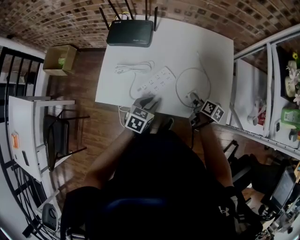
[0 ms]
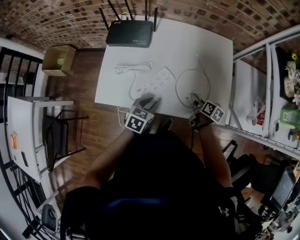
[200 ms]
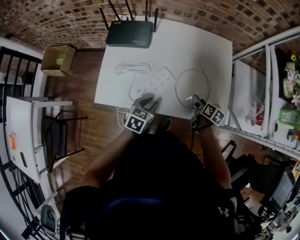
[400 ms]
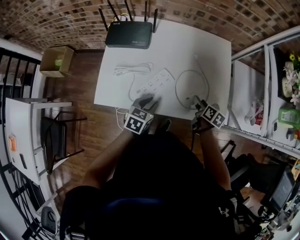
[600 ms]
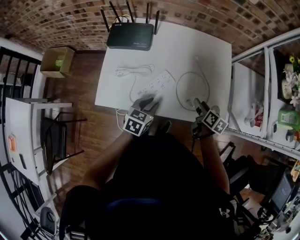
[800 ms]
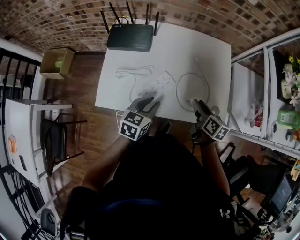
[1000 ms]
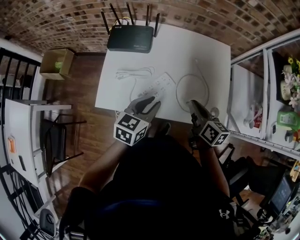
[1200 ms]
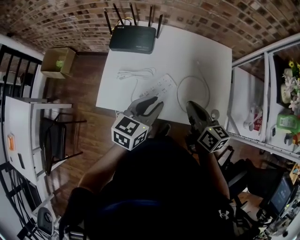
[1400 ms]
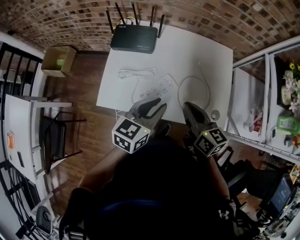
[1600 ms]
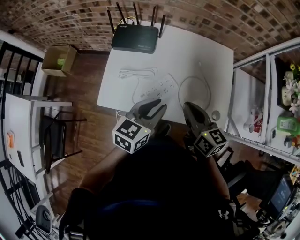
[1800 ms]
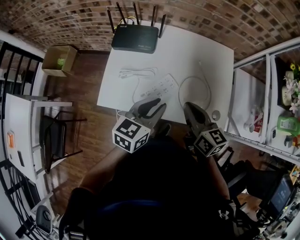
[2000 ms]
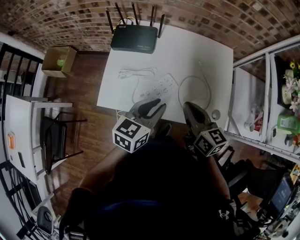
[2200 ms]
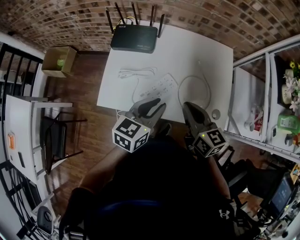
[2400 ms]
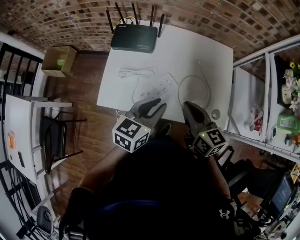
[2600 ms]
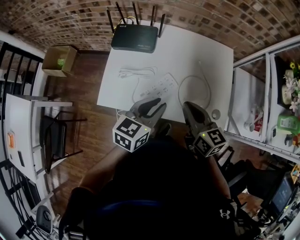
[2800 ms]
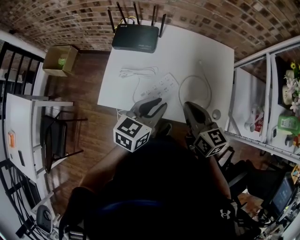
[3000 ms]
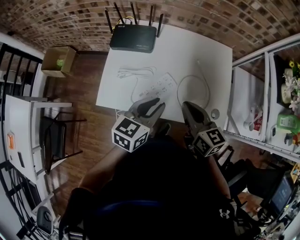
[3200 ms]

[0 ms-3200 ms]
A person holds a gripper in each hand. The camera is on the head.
0 ms to 1600 ms: The right gripper moves upward and to the left, about 25 cm, rotates roughly 40 degrees, and closes; the left gripper shifts approximately 20 cm upward, and rotates roughly 30 degrees.
1600 ms to 3200 ms: The grippers move only a little.

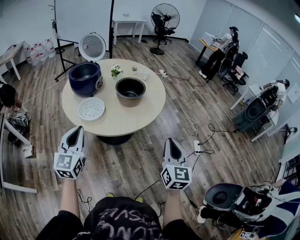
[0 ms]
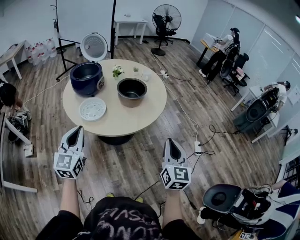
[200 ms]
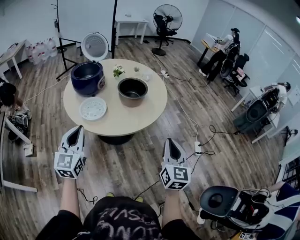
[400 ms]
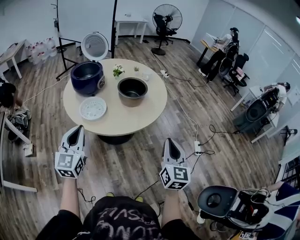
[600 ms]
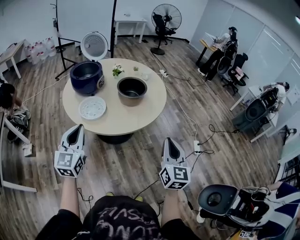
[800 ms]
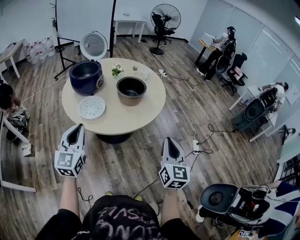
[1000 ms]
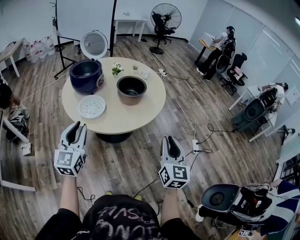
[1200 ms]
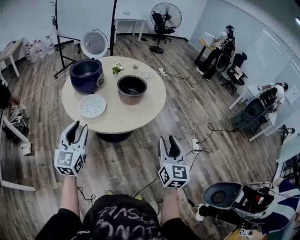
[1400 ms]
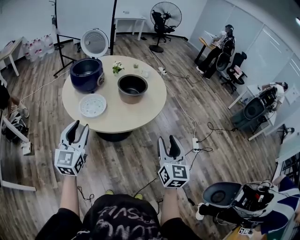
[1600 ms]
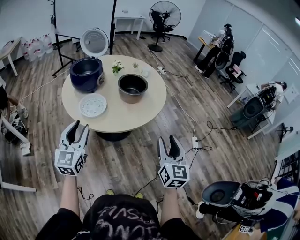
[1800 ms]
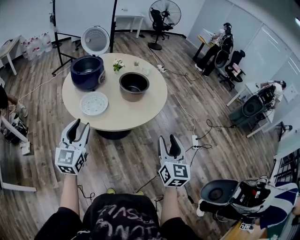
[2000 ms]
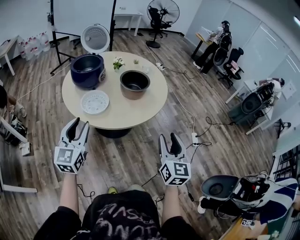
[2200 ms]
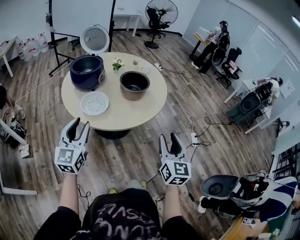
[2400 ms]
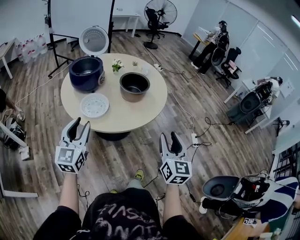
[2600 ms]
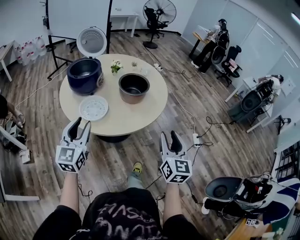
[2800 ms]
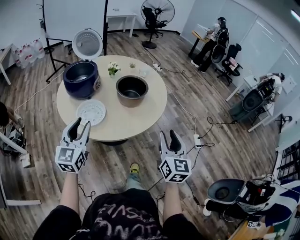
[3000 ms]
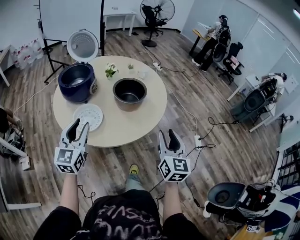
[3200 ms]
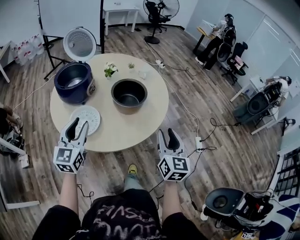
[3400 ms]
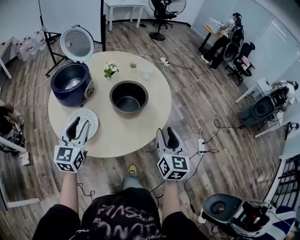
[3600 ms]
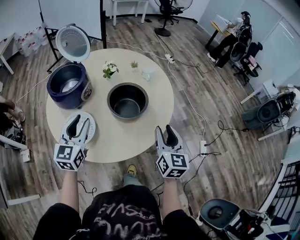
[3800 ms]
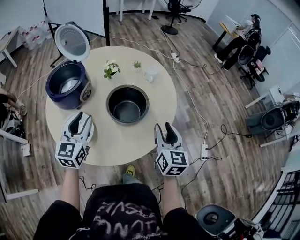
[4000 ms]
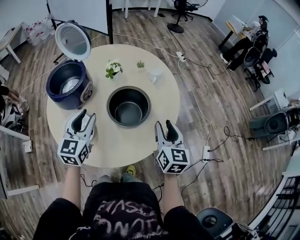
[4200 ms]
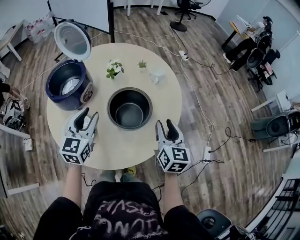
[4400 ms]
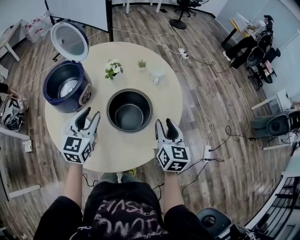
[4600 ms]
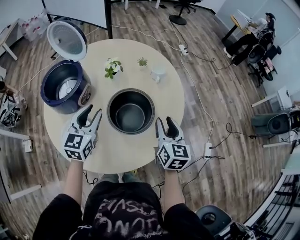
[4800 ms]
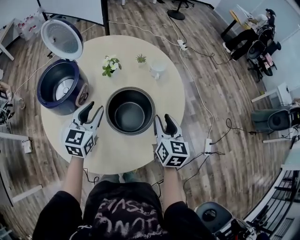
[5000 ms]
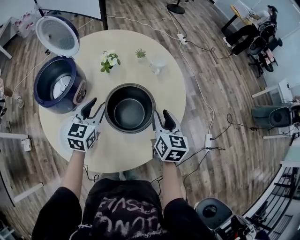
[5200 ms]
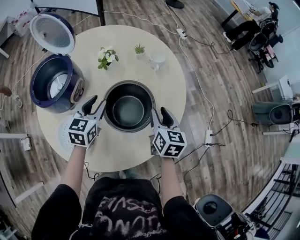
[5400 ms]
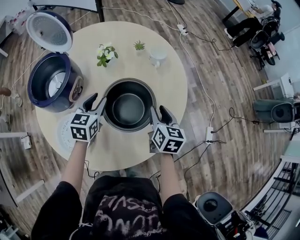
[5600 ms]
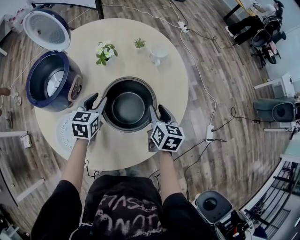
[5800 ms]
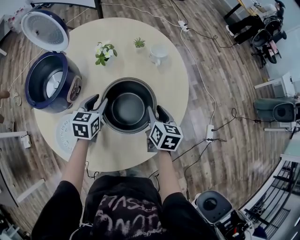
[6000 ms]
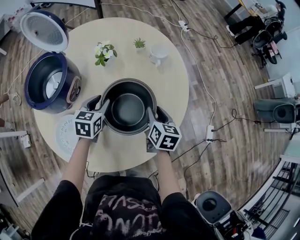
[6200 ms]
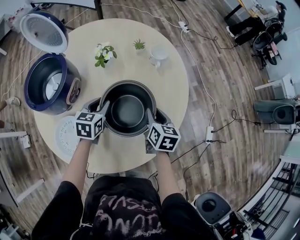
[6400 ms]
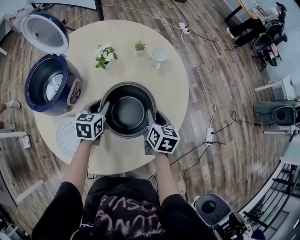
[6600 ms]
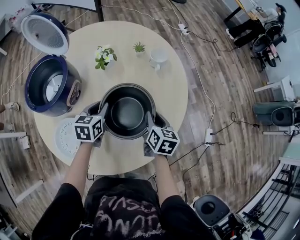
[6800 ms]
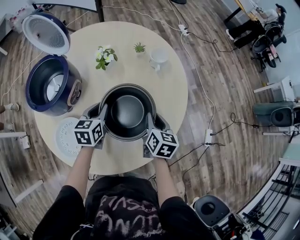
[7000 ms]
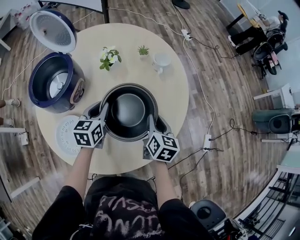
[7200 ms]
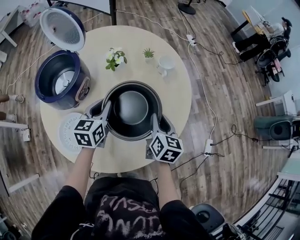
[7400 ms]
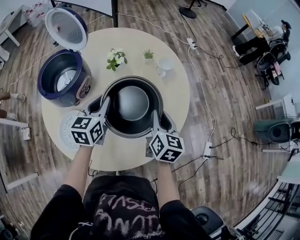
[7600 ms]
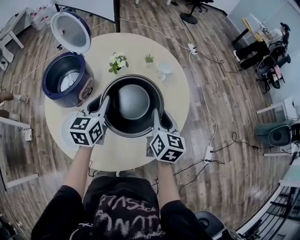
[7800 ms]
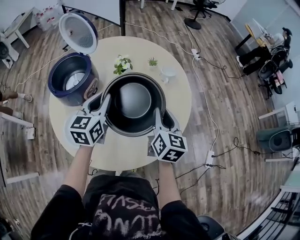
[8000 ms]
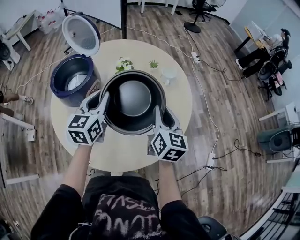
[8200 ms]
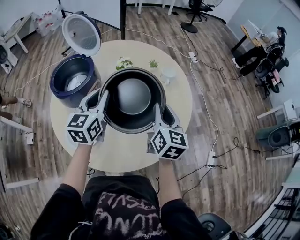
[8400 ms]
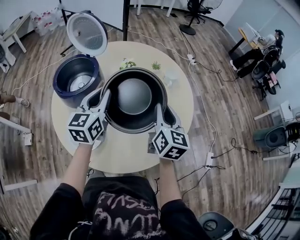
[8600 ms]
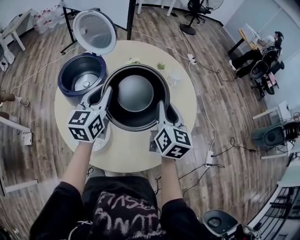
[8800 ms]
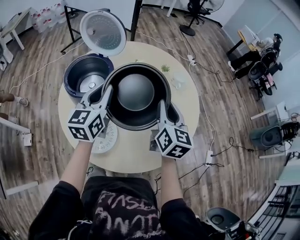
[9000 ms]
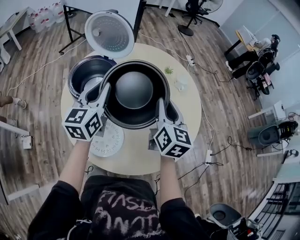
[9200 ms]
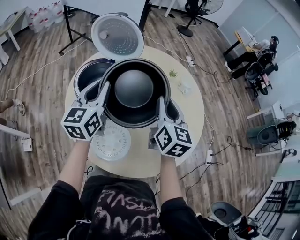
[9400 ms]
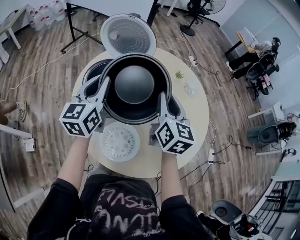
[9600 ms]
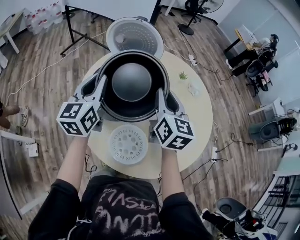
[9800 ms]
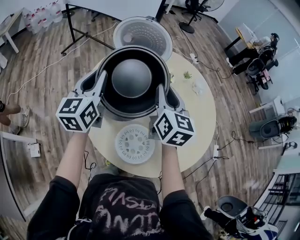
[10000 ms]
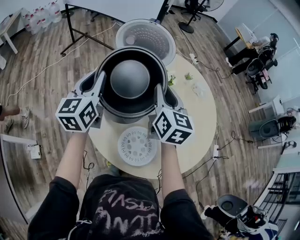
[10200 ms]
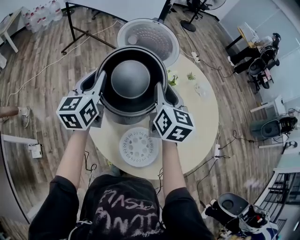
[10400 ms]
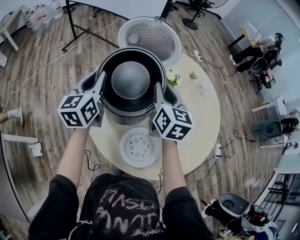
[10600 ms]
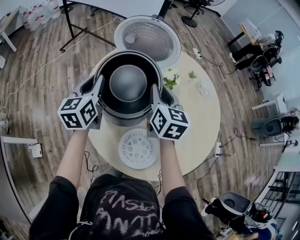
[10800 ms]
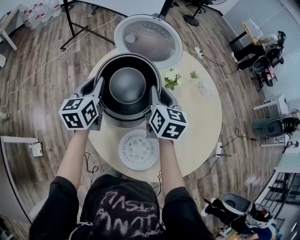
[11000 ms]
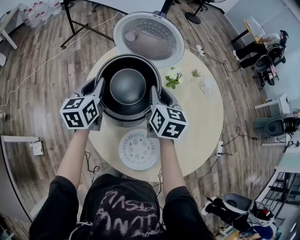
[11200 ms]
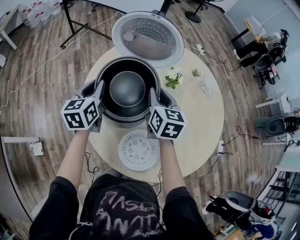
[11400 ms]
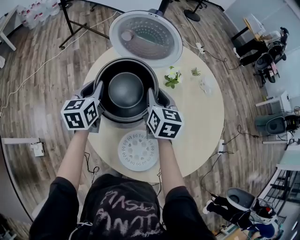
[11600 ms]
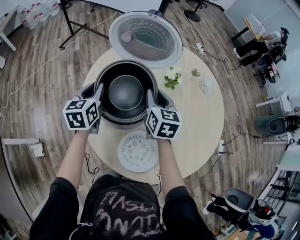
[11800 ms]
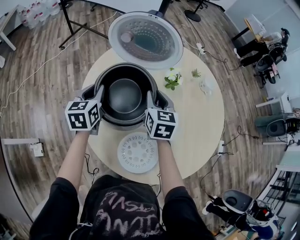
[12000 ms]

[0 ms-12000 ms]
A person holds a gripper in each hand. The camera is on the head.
0 ms to 1600 ms: The left gripper opens. The right gripper opens its fingers.
1600 ms to 3000 ms: Both grippers move forward, roughly 5 cm.
3000 ms to 4400 ms: The grippers both shift forward by roughly 30 cm.
4400 ms to 6000 ms: Both grippers travel together downward and forward, some 20 cm. The right gripper turns by roughly 20 degrees. The left gripper turns by about 30 degrees.
6000 ms to 7600 ms: The grippers both shift upward by approximately 10 cm. The left gripper closes its fingers.
7600 ms to 9000 ms: The grippers both shift to the left and upward by approximately 15 cm.
9000 ms to 10400 ms: The grippers both shift to the left by some 25 cm.
10400 ms to 12000 ms: Both grippers move downward, some 15 cm. The left gripper turns by about 20 degrees.

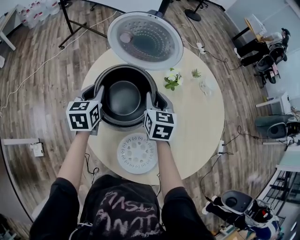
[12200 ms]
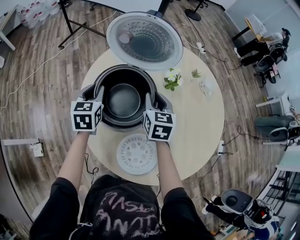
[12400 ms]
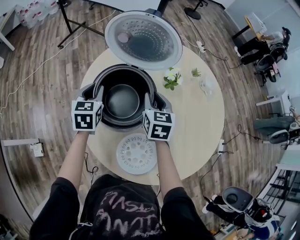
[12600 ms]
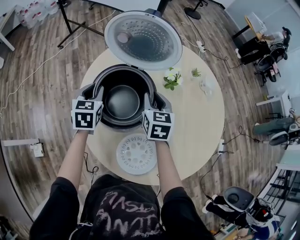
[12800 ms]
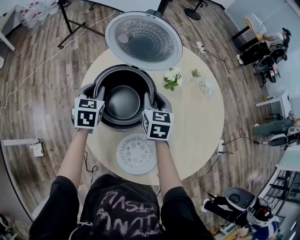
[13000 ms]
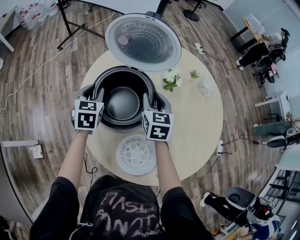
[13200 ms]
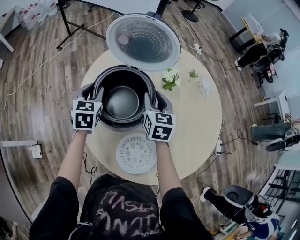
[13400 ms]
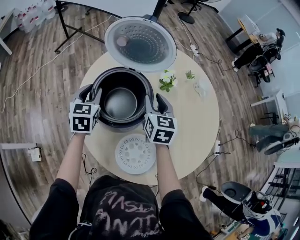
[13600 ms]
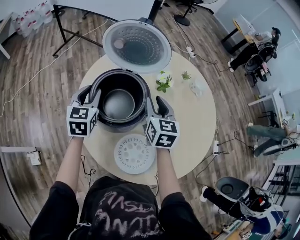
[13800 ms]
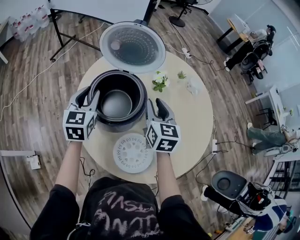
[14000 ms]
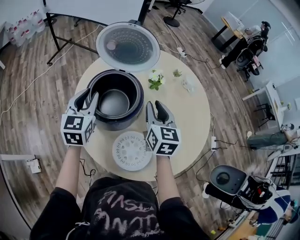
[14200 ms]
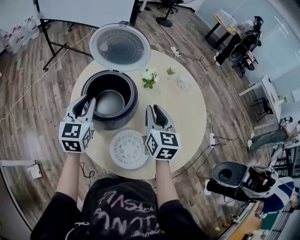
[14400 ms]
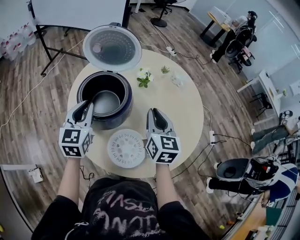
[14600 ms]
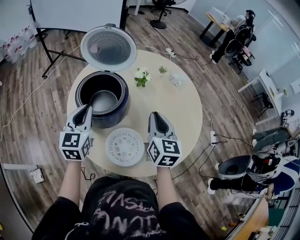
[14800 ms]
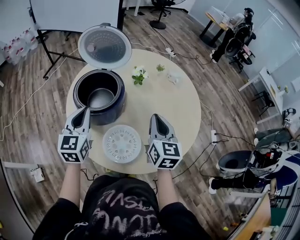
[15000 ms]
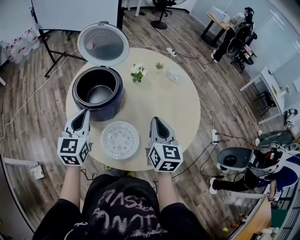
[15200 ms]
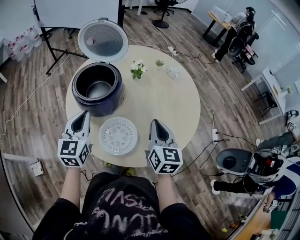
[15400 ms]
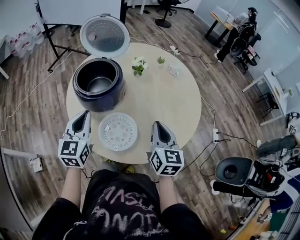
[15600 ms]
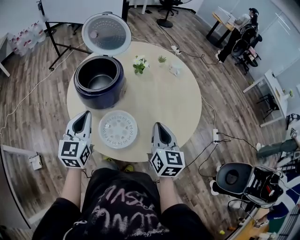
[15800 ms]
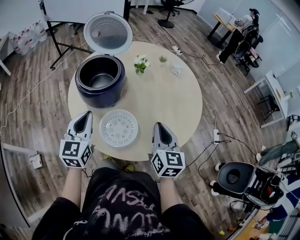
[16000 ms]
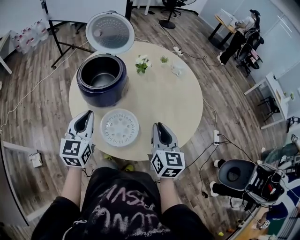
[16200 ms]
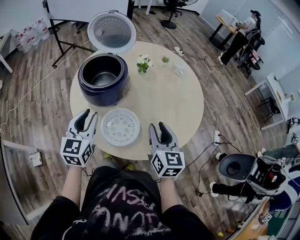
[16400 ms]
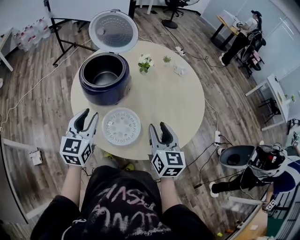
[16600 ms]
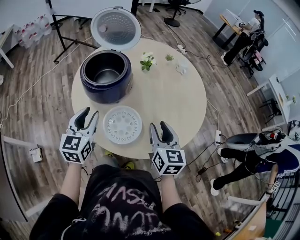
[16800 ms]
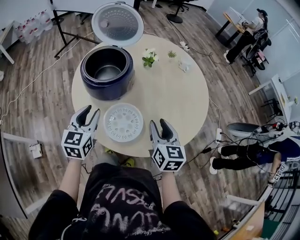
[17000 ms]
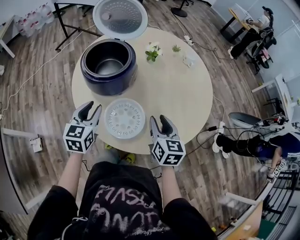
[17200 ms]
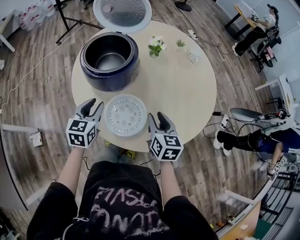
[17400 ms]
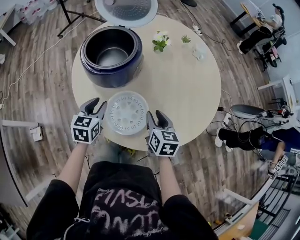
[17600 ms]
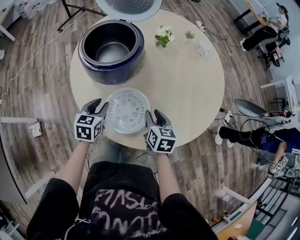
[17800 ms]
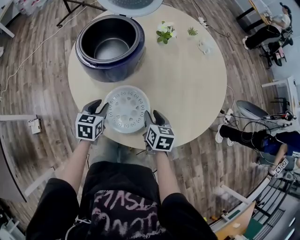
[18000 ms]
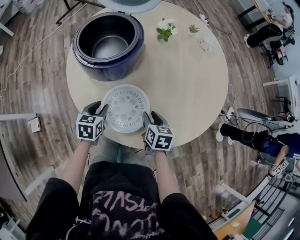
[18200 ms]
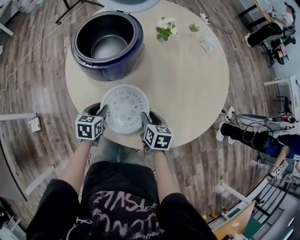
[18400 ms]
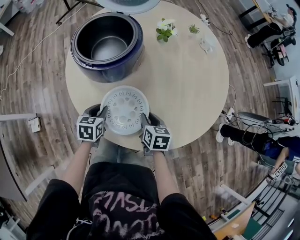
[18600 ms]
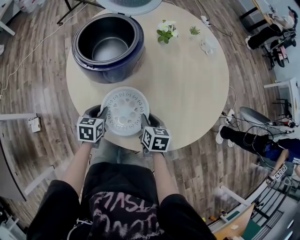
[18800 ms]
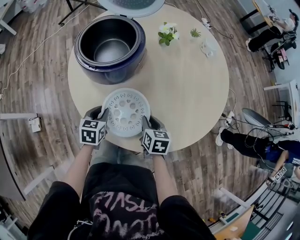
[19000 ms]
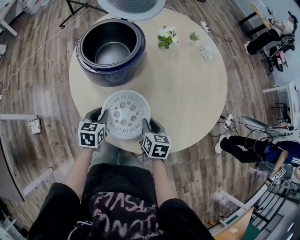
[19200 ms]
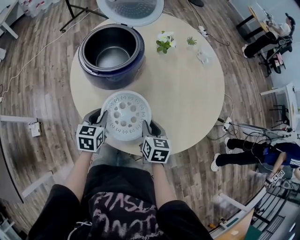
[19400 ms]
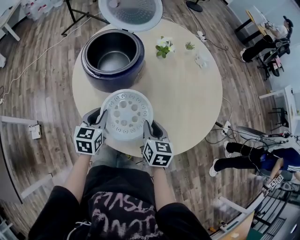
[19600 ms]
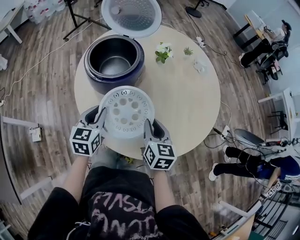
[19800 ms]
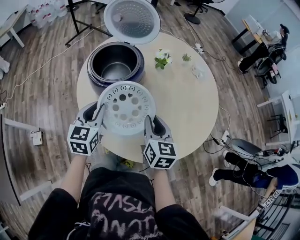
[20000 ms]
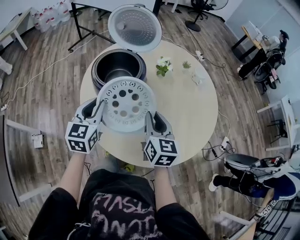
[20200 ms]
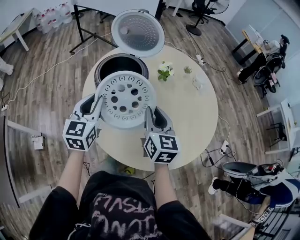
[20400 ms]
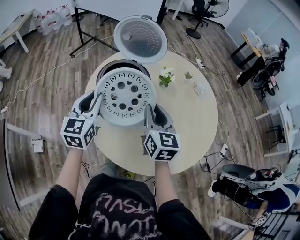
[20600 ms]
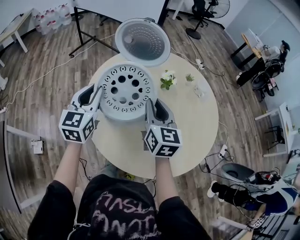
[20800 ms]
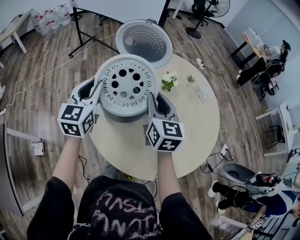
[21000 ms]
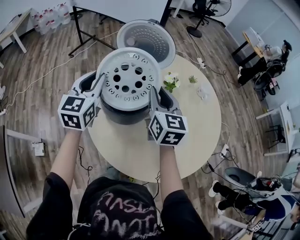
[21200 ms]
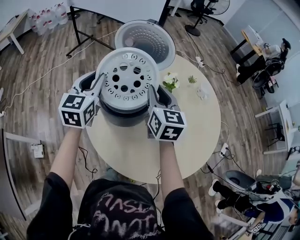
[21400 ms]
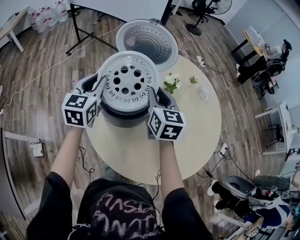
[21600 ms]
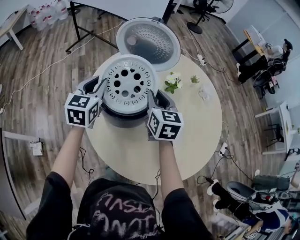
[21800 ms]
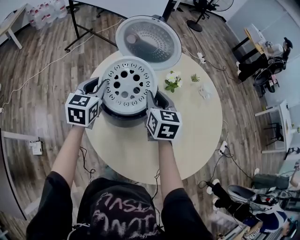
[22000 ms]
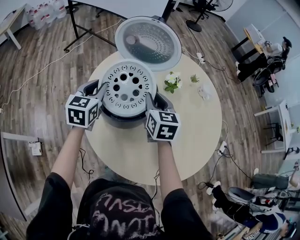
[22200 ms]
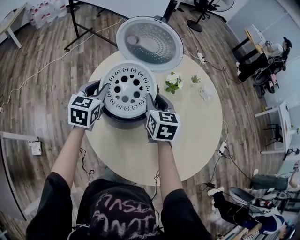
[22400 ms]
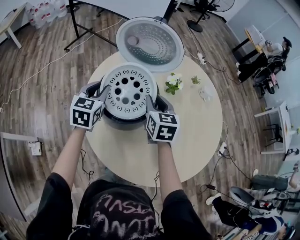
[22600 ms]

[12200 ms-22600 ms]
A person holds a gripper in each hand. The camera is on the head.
12200 ms to 13600 ms: The grippers stay close to where they were, moving slightly.
13600 ms to 15200 ms: The right gripper travels backward and to the right by roughly 25 cm, and closes. The left gripper moves backward, to the right and upward, about 25 cm, and closes up.
15200 ms to 16600 ms: The two grippers go approximately 10 cm backward. The right gripper opens. The left gripper opens its fingers.
16600 ms to 18200 ms: The grippers both shift downward by roughly 25 cm. The left gripper points its fingers roughly 30 degrees further downward, while the right gripper angles its fingers downward, by approximately 30 degrees.
18200 ms to 19600 ms: Both grippers travel together upward, some 10 cm.
19600 ms to 21200 ms: Both grippers travel together upward and forward, about 30 cm. The left gripper swivels approximately 30 degrees, while the right gripper rotates some 30 degrees.
21200 ms to 22600 ms: The two grippers go about 10 cm downward.
